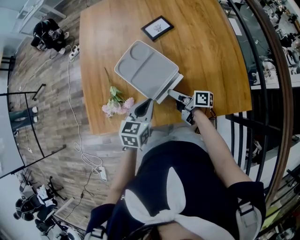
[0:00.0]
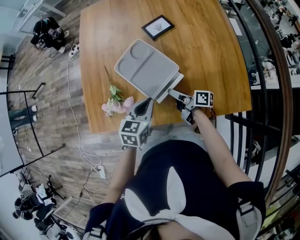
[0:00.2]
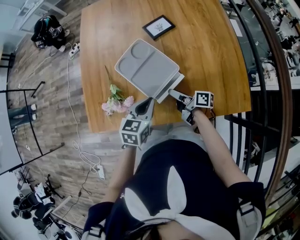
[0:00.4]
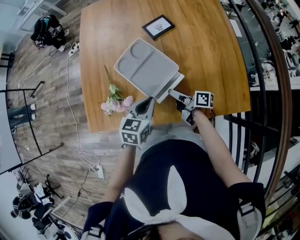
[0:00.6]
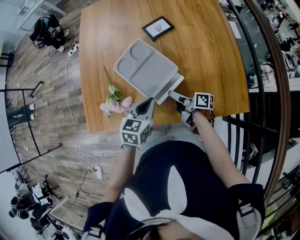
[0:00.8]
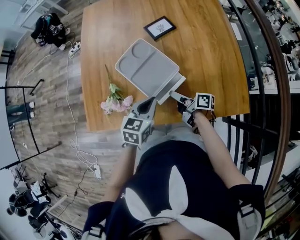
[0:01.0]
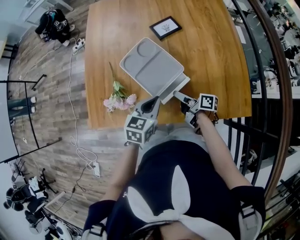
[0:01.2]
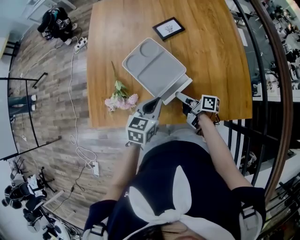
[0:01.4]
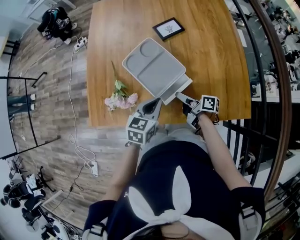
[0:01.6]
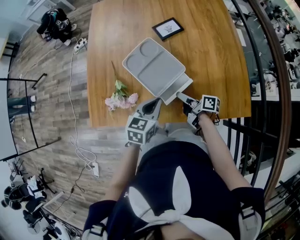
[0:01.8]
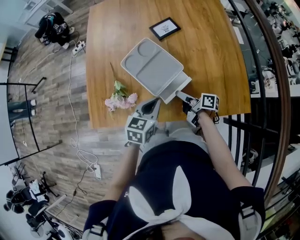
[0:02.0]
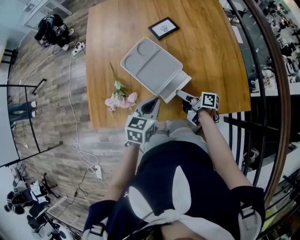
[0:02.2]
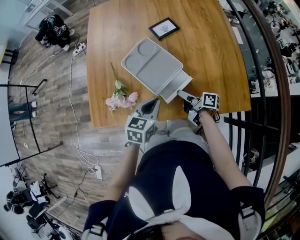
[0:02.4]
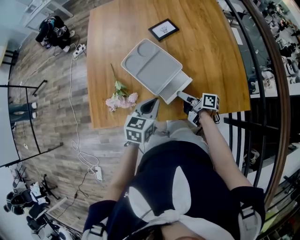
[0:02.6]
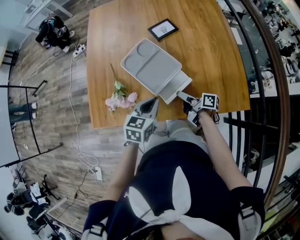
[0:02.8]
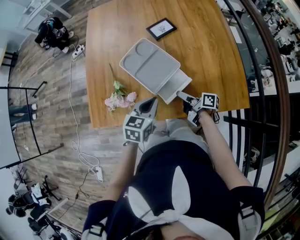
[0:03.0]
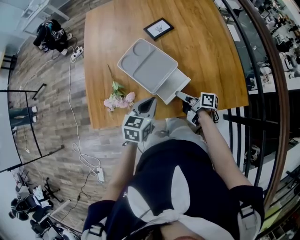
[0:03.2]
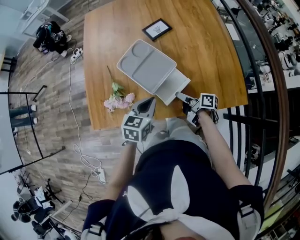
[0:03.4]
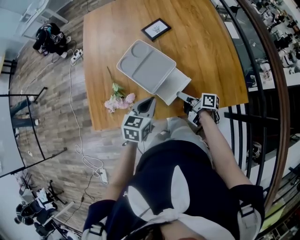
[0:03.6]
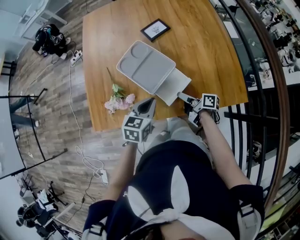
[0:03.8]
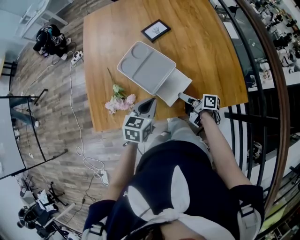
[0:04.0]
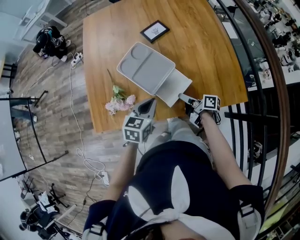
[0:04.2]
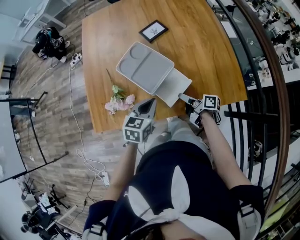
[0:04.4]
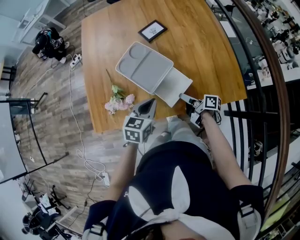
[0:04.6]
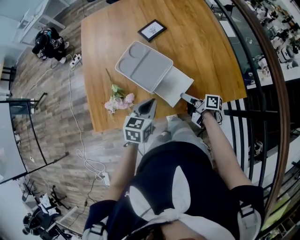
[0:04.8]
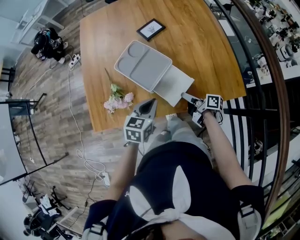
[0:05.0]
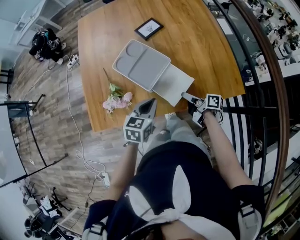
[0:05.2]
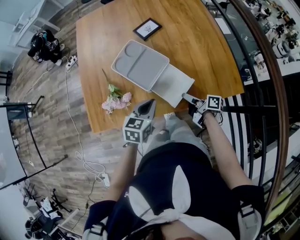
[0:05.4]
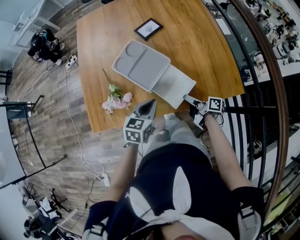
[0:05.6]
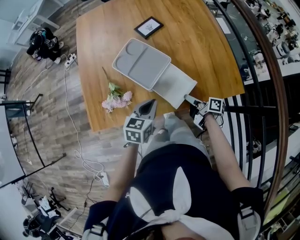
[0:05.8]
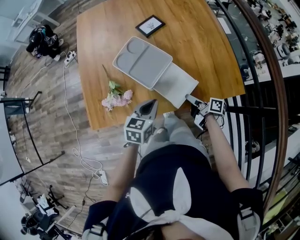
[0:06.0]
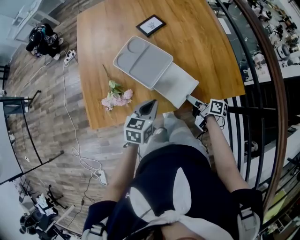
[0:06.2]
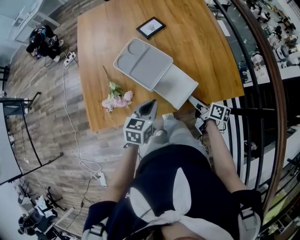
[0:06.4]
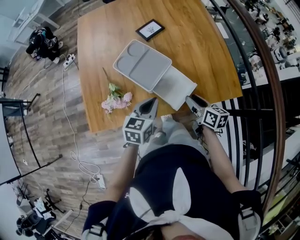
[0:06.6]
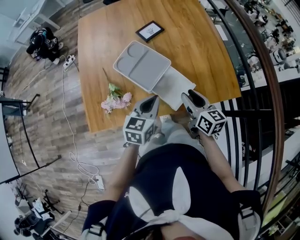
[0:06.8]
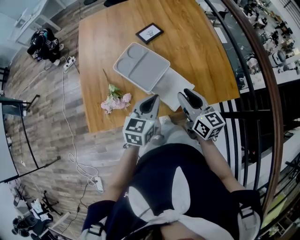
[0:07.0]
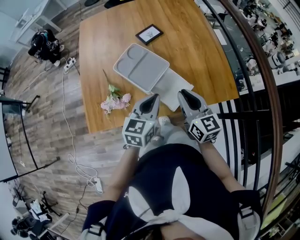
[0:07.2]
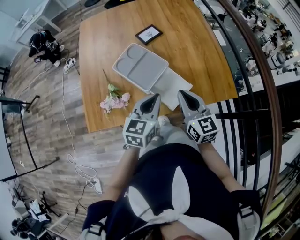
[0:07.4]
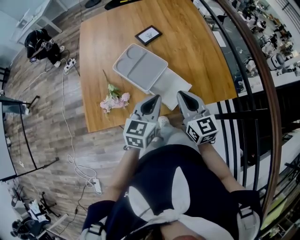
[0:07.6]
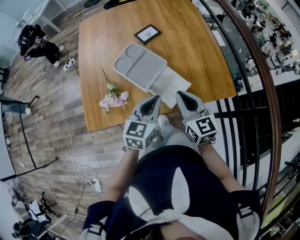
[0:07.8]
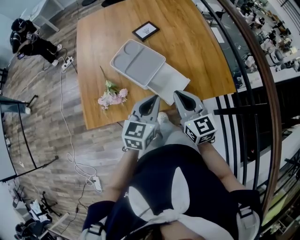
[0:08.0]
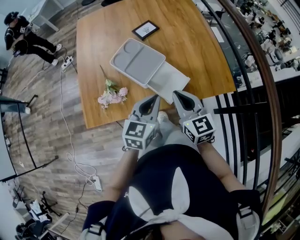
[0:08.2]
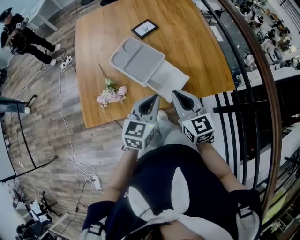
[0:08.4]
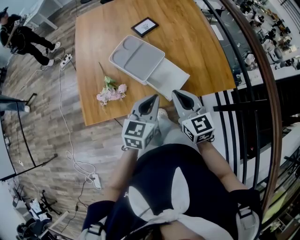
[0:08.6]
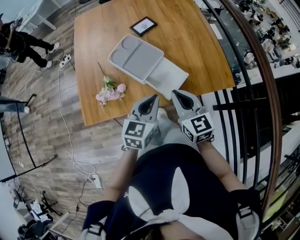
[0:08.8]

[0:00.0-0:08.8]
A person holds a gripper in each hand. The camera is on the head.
0:00.0 to 0:01.4: The two grippers keep their place.
0:01.4 to 0:03.0: There are only small adjustments of the grippers.
0:03.0 to 0:04.4: The grippers make only small movements.
0:04.4 to 0:05.8: The right gripper moves approximately 5 cm.
0:05.8 to 0:07.4: The left gripper shifts roughly 10 cm upward; the right gripper goes approximately 20 cm upward, rotates around the line of its fingers by roughly 70 degrees, counterclockwise from behind, and closes.
0:07.4 to 0:08.8: The two grippers go roughly 5 cm backward.

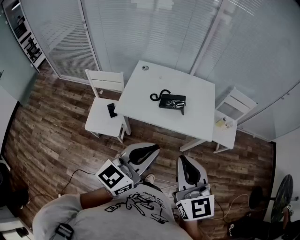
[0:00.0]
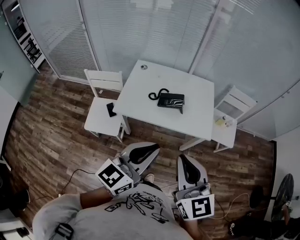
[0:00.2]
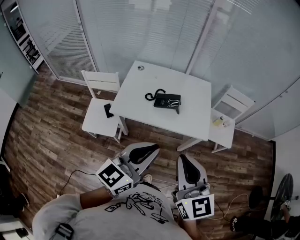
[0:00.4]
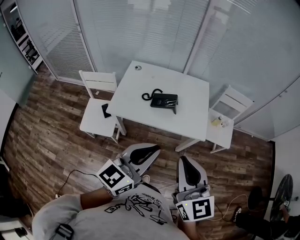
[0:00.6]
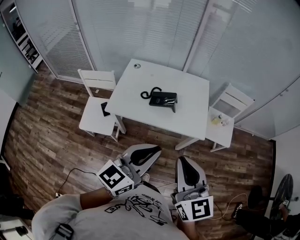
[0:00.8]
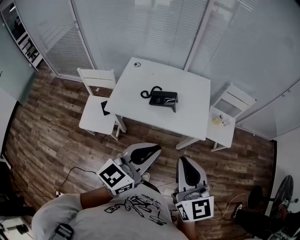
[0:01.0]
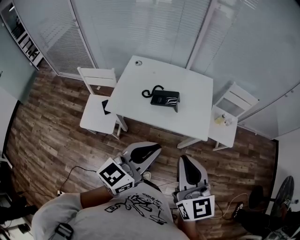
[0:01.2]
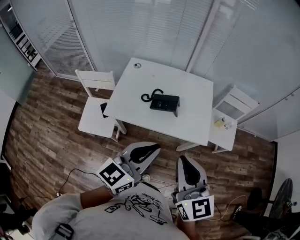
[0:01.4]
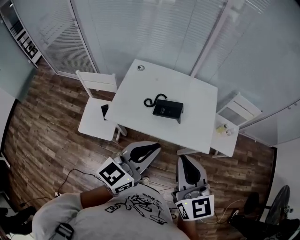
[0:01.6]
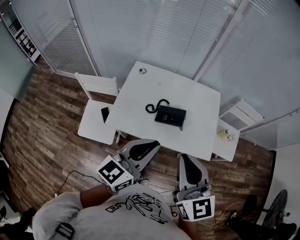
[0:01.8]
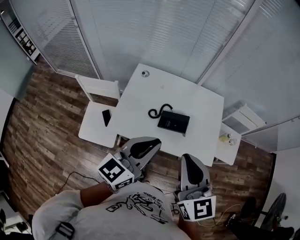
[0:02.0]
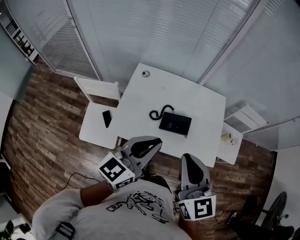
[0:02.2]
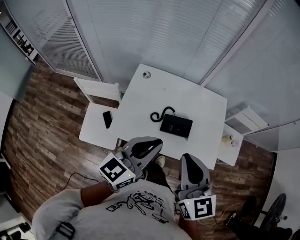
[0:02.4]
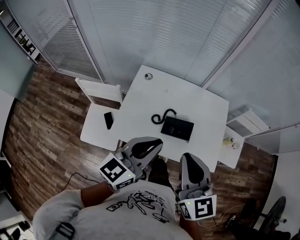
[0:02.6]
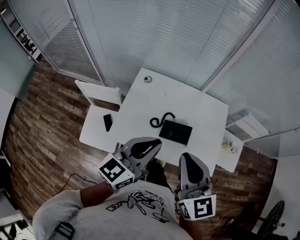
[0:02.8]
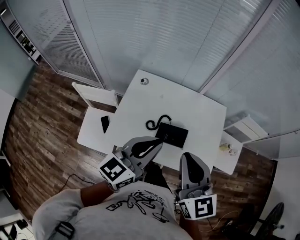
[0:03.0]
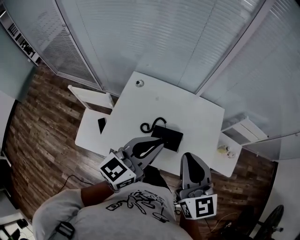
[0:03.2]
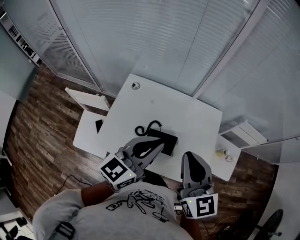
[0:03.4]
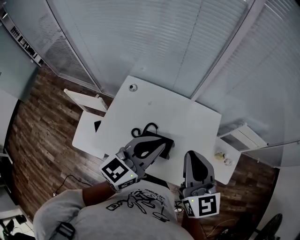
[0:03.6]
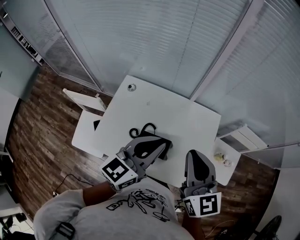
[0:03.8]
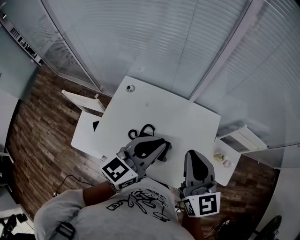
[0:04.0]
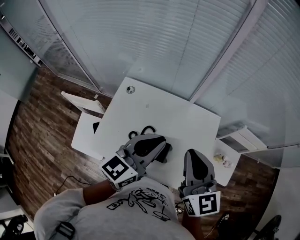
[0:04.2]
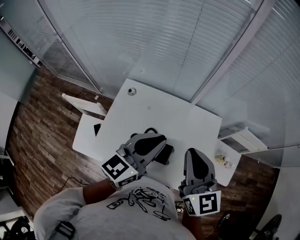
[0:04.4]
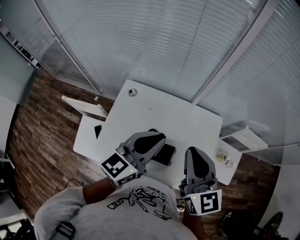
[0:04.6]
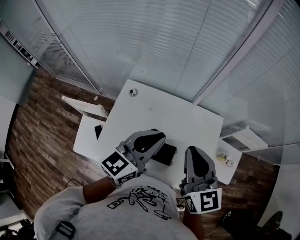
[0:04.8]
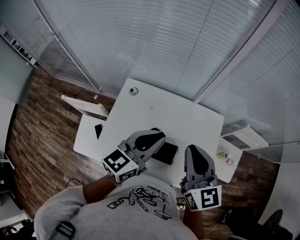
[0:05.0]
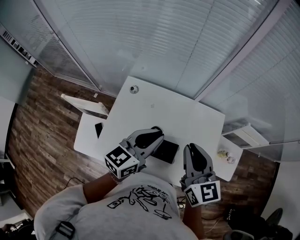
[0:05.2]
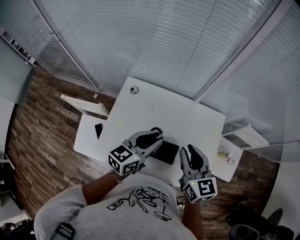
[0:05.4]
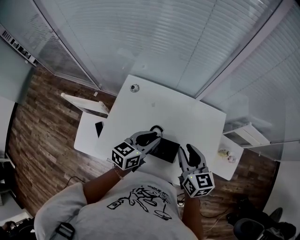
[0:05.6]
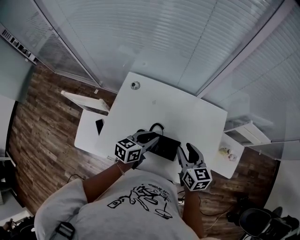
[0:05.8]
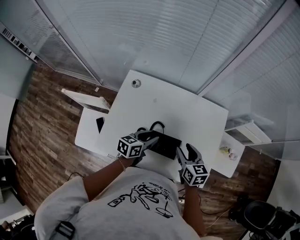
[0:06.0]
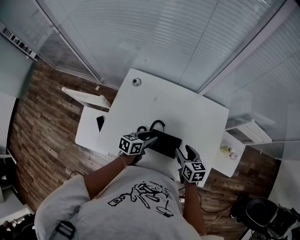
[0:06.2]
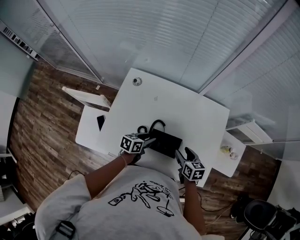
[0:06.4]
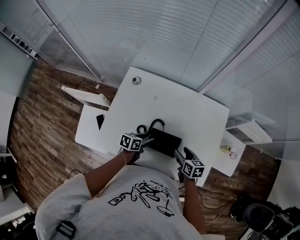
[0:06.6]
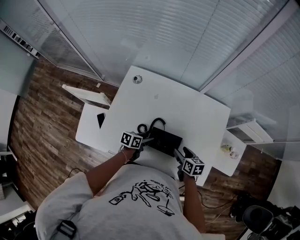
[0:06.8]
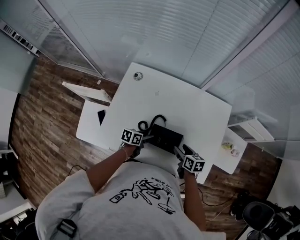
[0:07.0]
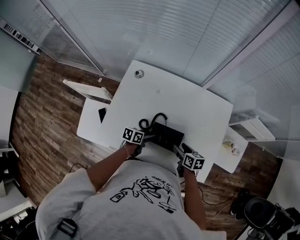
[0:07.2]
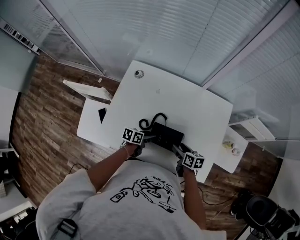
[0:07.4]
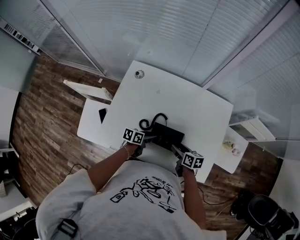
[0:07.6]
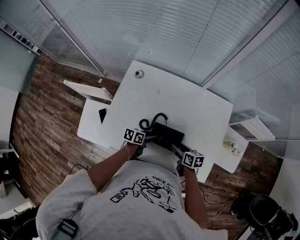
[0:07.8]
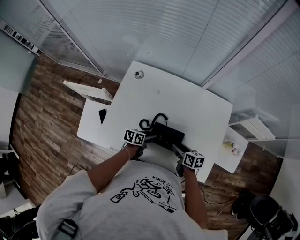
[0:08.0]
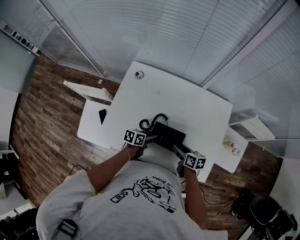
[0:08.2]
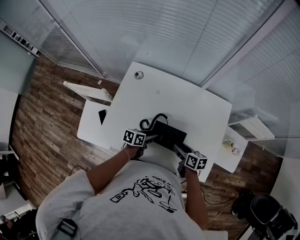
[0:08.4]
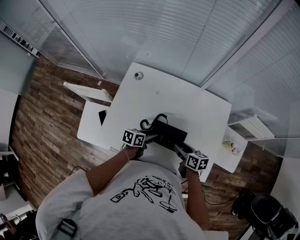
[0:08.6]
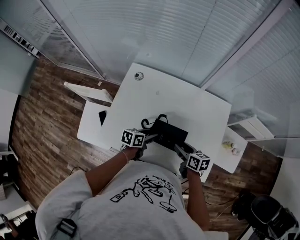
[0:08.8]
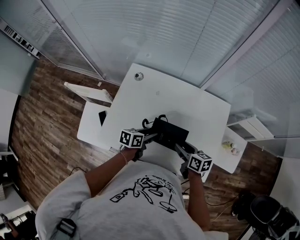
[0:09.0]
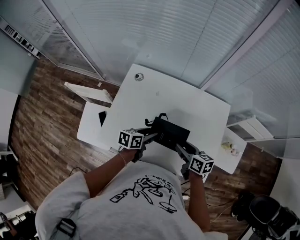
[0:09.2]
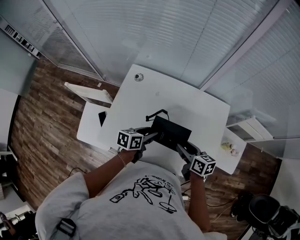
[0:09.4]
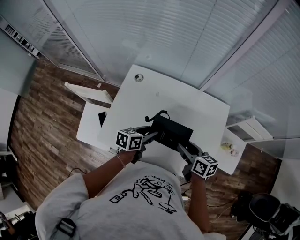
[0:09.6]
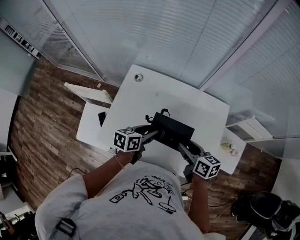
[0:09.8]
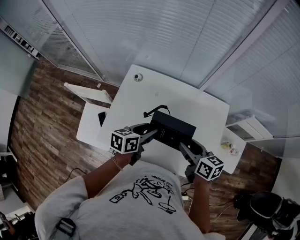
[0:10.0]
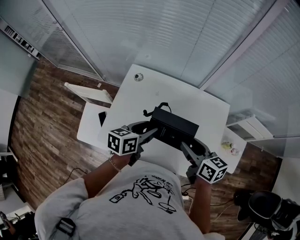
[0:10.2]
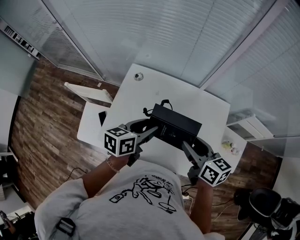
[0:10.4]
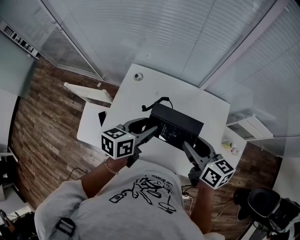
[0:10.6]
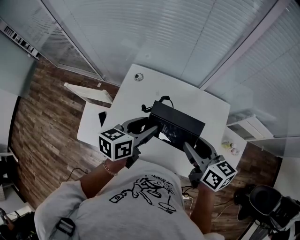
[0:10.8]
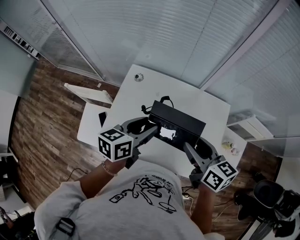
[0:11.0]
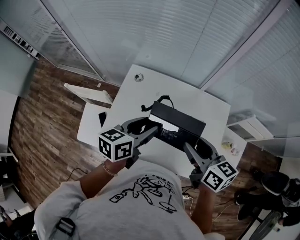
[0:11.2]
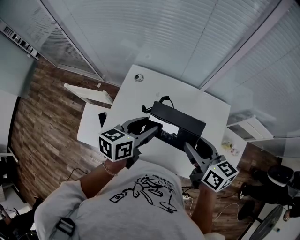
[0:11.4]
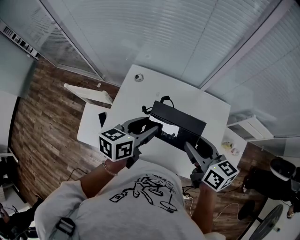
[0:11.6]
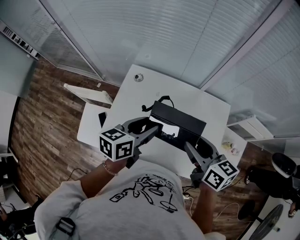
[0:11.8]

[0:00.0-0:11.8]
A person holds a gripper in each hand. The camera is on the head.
0:00.0 to 0:01.4: Both grippers travel together forward and to the right, about 10 cm.
0:01.4 to 0:03.0: The right gripper goes approximately 25 cm forward. The left gripper heads forward and to the left, covering some 25 cm.
0:03.0 to 0:04.4: The grippers both shift forward and to the right by some 15 cm.
0:04.4 to 0:06.0: The two grippers go about 30 cm downward. The left gripper swivels some 40 degrees, and opens up, while the right gripper turns by roughly 30 degrees, and opens.
0:06.0 to 0:07.4: The two grippers go roughly 15 cm downward. The right gripper turns by approximately 30 degrees. The left gripper changes its angle by about 20 degrees.
0:07.4 to 0:08.8: The grippers both shift upward by approximately 5 cm.
0:08.8 to 0:10.4: The grippers both shift upward by approximately 20 cm.
0:10.4 to 0:11.8: The grippers stay close to where they were, moving slightly.

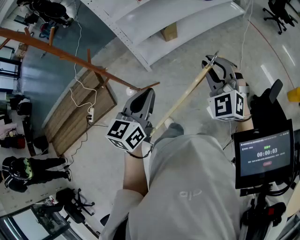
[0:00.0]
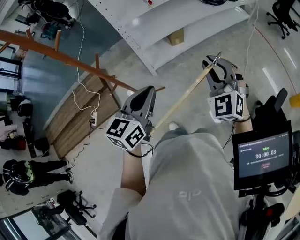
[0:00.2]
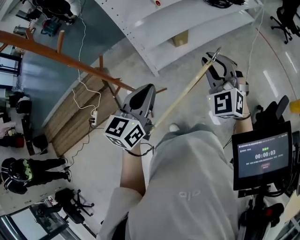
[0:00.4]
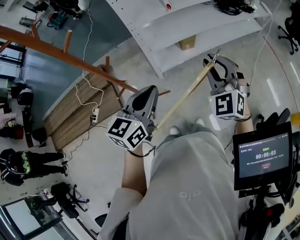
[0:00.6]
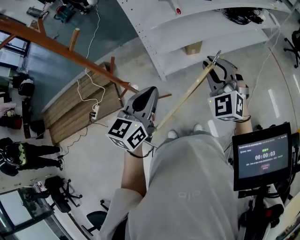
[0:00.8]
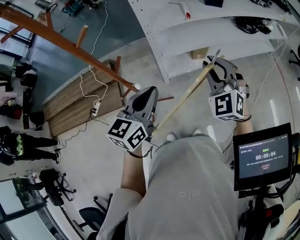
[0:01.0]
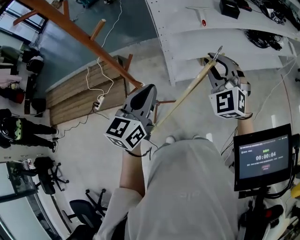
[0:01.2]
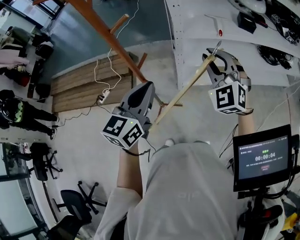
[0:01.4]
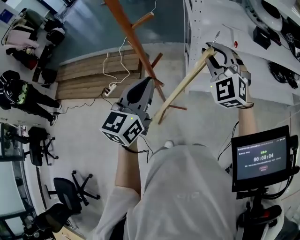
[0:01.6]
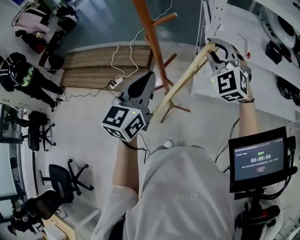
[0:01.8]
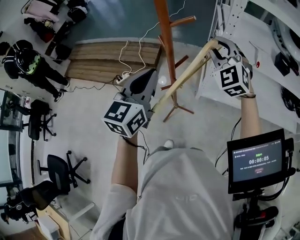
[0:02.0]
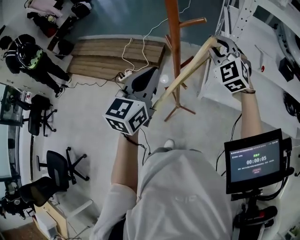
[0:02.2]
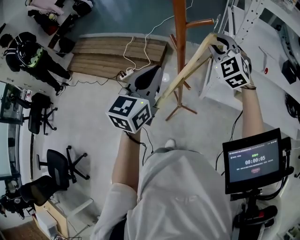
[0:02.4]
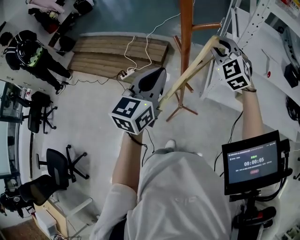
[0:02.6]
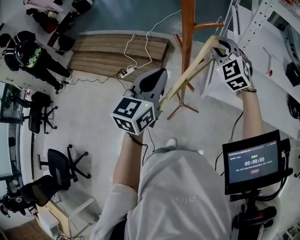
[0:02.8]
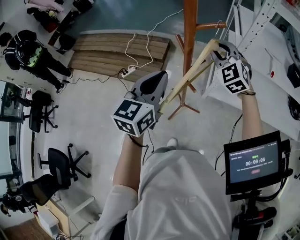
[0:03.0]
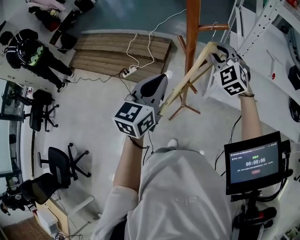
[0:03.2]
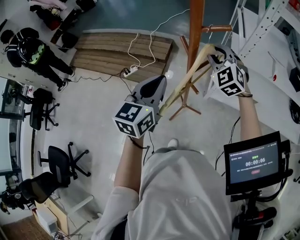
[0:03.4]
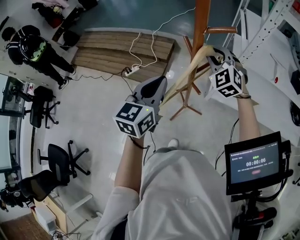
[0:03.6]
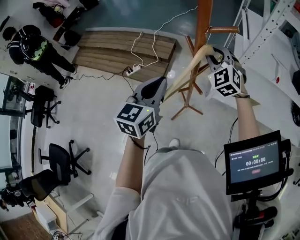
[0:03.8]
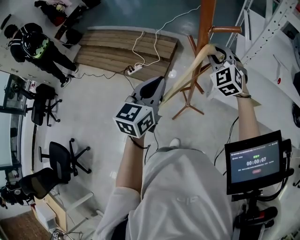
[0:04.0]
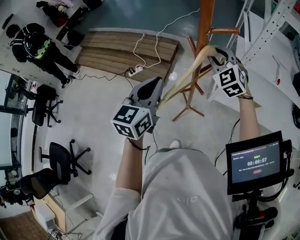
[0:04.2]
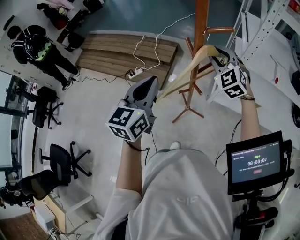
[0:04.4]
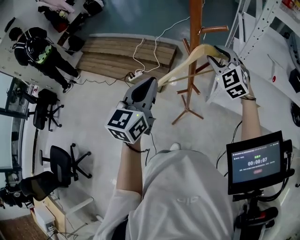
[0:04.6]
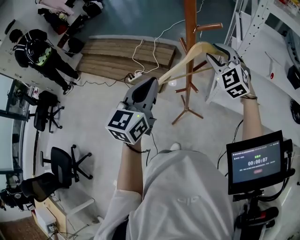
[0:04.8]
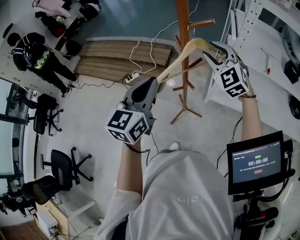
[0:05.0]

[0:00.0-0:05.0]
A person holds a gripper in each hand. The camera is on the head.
0:00.0 to 0:01.6: The right gripper goes up and down, roughly 10 cm each way, reversing 2 times, and turns by roughly 40 degrees. Meanwhile the left gripper goes up and down, approximately 10 cm each way, reversing 2 times, and swivels some 40 degrees.
0:01.6 to 0:03.4: The left gripper heads to the left, covering roughly 15 cm. The right gripper travels to the left, forward and downward by about 25 cm.
0:03.4 to 0:05.0: The two grippers go approximately 10 cm backward and upward.
